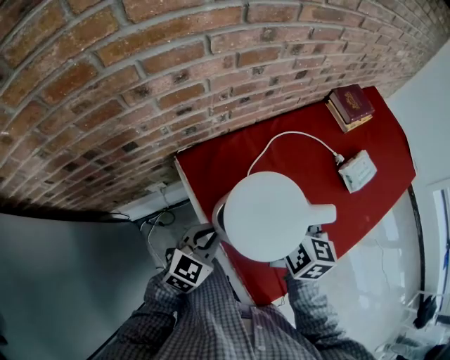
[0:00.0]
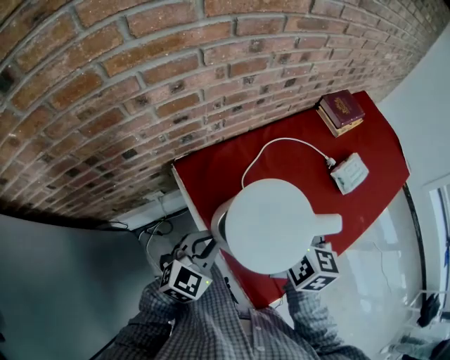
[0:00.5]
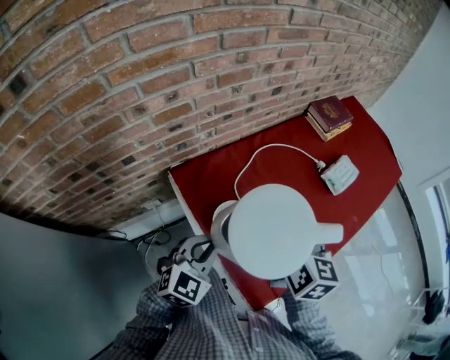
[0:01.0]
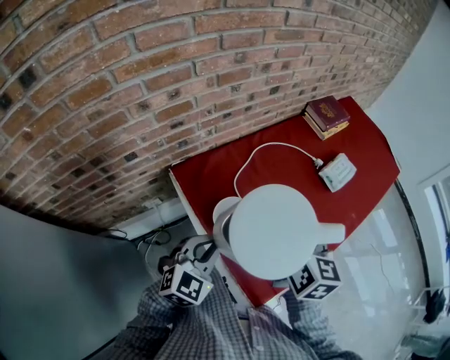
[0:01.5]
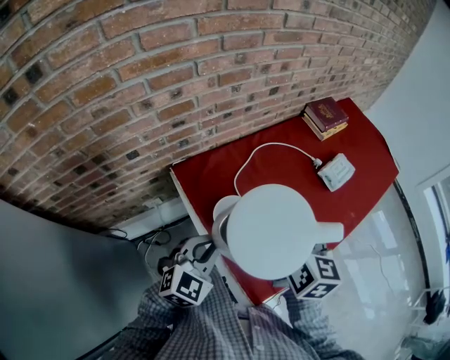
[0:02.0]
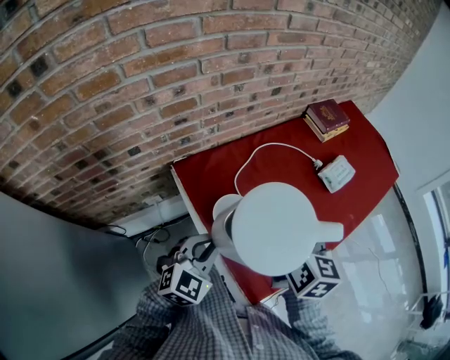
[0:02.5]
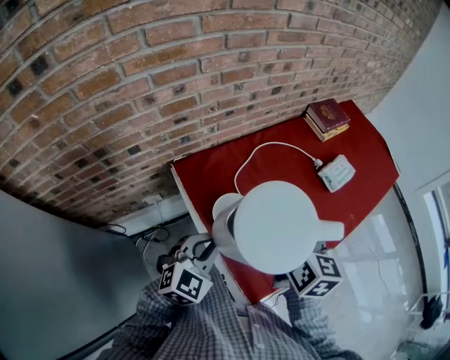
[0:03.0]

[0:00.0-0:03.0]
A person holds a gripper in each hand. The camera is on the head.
0:00.0 to 0:01.5: The left gripper is displaced upward by approximately 5 cm; the right gripper shifts about 10 cm upward, backward and to the right.
0:01.5 to 0:03.0: The grippers move only a little.

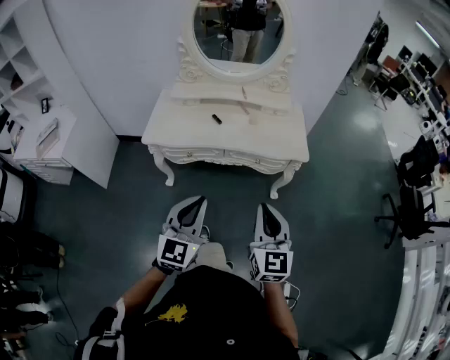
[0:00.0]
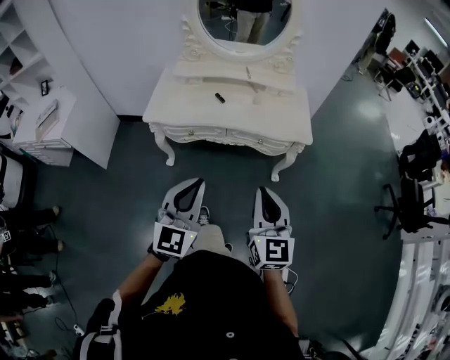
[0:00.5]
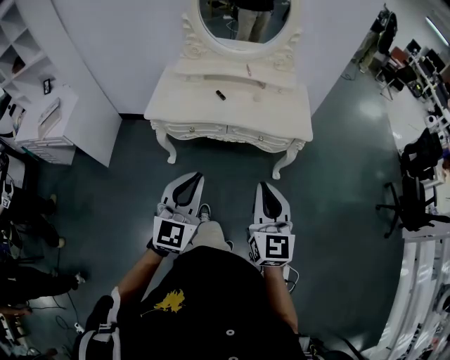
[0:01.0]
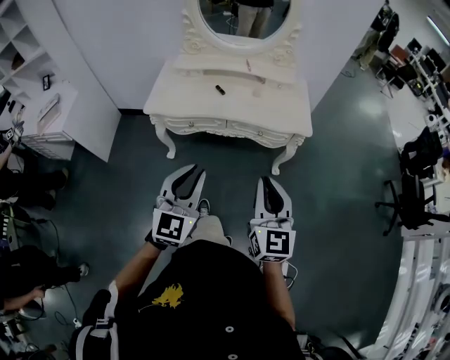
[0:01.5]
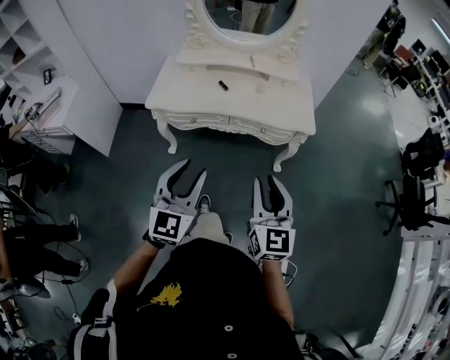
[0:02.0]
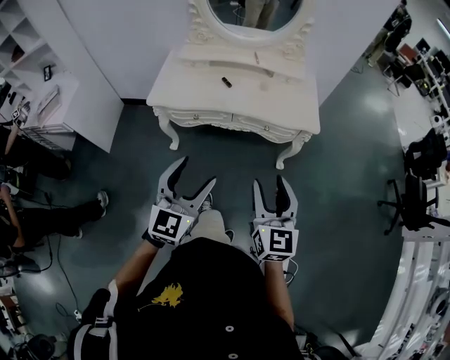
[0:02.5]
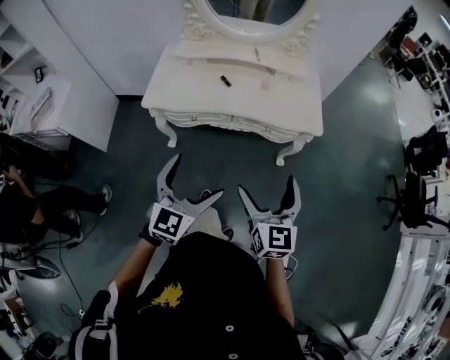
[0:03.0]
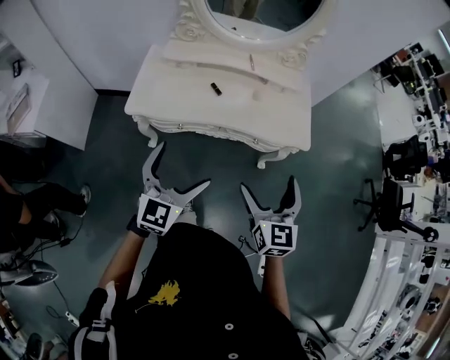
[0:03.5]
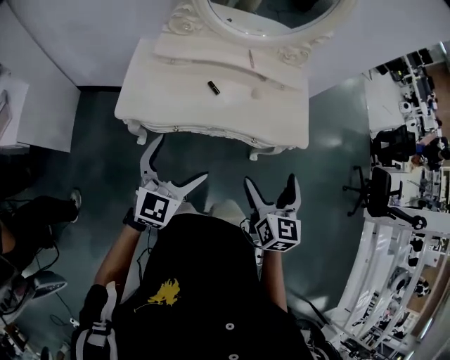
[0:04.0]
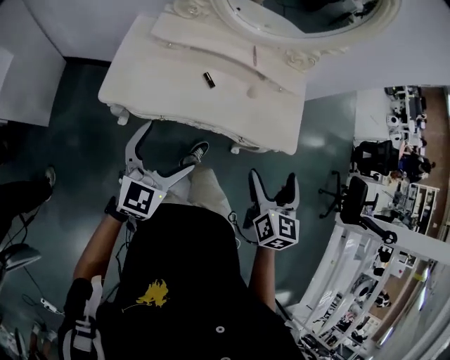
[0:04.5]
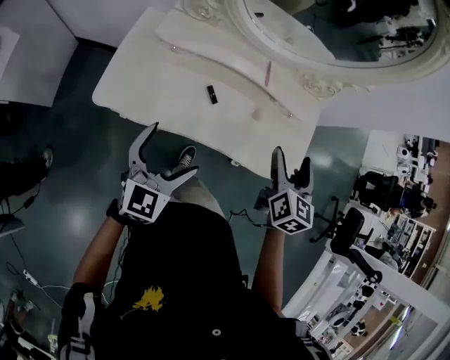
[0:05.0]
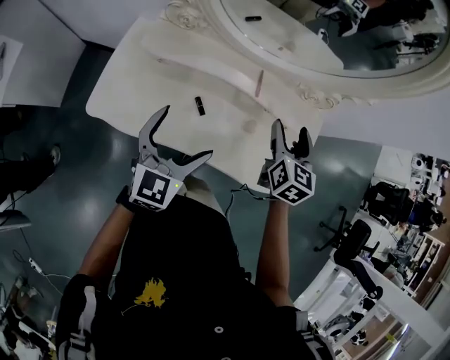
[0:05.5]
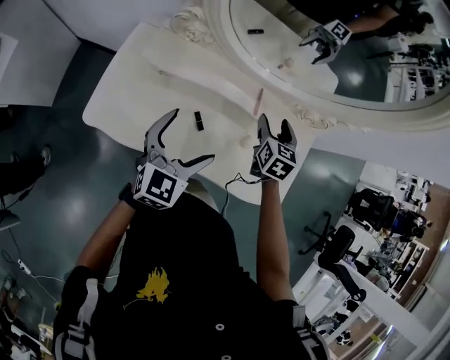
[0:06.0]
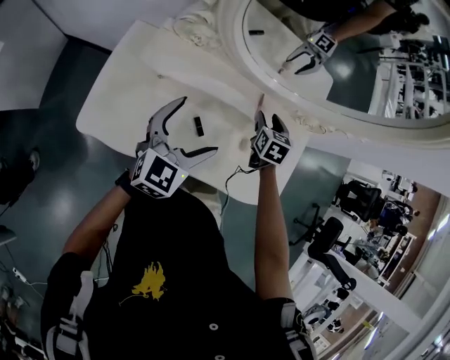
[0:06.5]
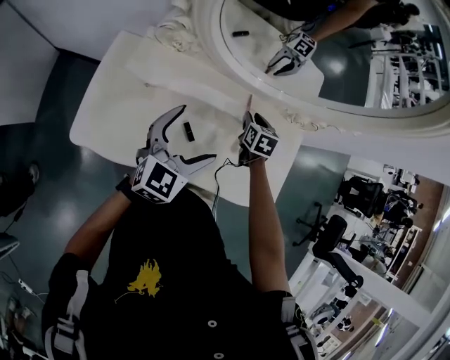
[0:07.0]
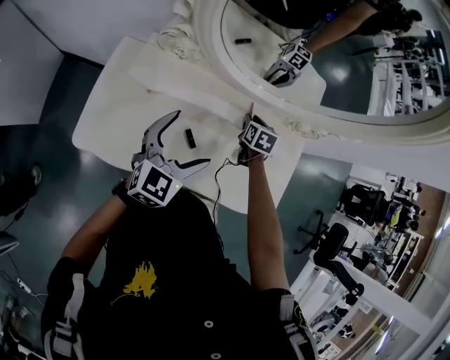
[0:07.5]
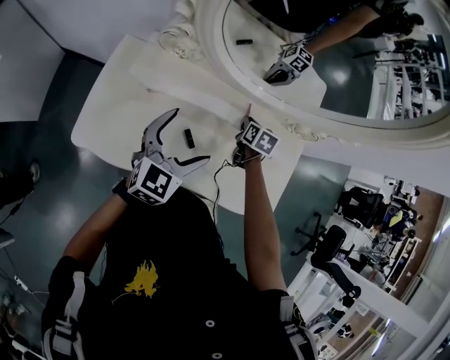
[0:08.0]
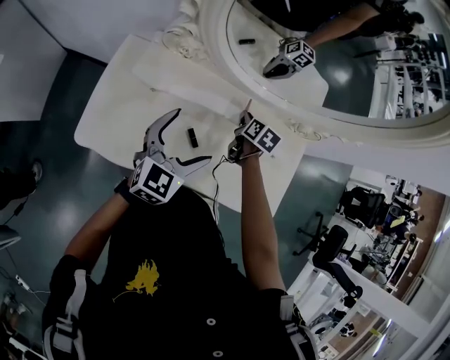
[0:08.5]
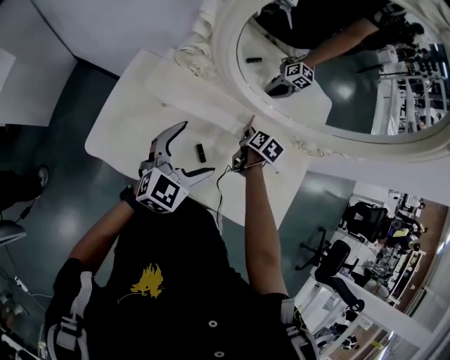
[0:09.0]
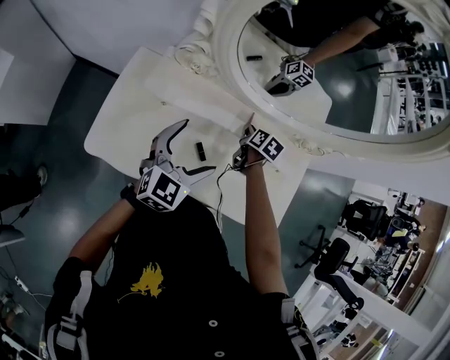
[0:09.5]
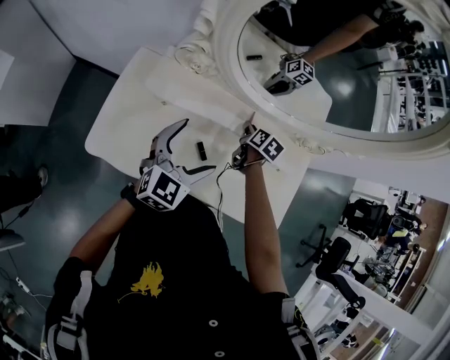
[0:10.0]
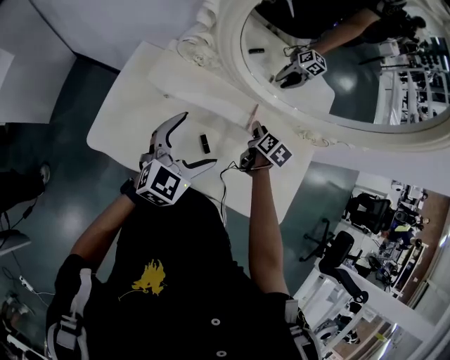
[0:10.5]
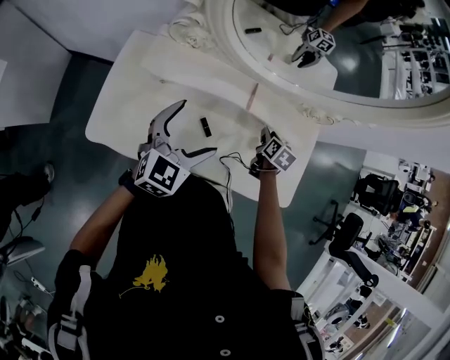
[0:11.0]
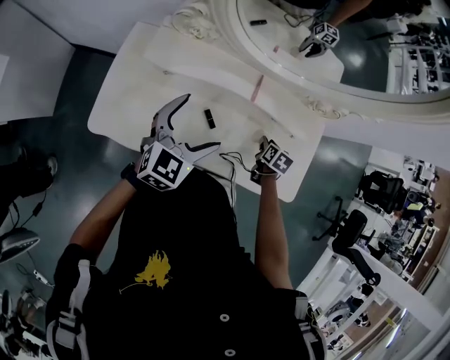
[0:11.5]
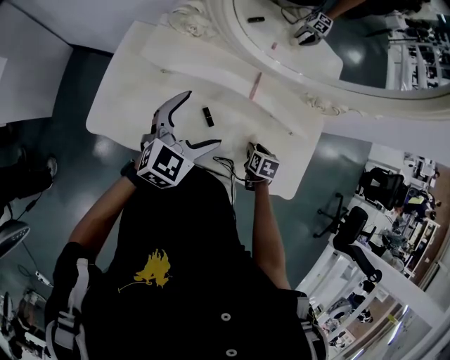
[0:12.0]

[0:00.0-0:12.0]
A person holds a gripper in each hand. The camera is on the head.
0:00.0 to 0:02.0: The grippers stay close to where they were, moving slightly.
0:02.0 to 0:04.0: Both grippers travel together forward and to the left, some 30 cm. The left gripper opens; the right gripper opens up.
0:04.0 to 0:06.0: Both grippers move forward, roughly 40 cm. The right gripper closes.
0:06.0 to 0:08.0: The right gripper heads downward and forward, covering approximately 15 cm, swivels some 20 degrees, and closes up. The left gripper travels forward by some 5 cm.
0:08.0 to 0:10.0: The grippers stay close to where they were, moving slightly.
0:10.0 to 0:12.0: The right gripper goes roughly 25 cm backward, to the right and downward, and turns by roughly 20 degrees.

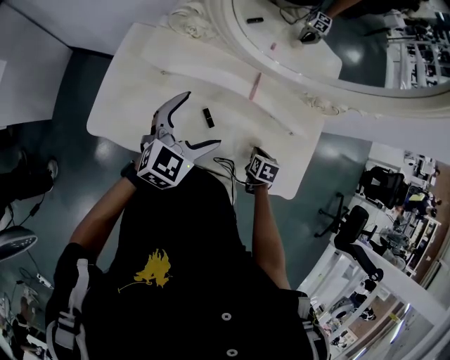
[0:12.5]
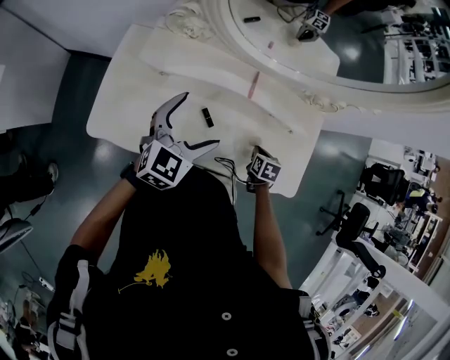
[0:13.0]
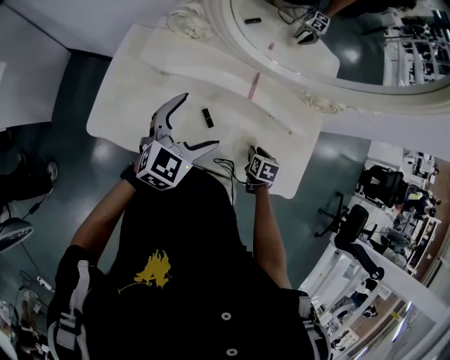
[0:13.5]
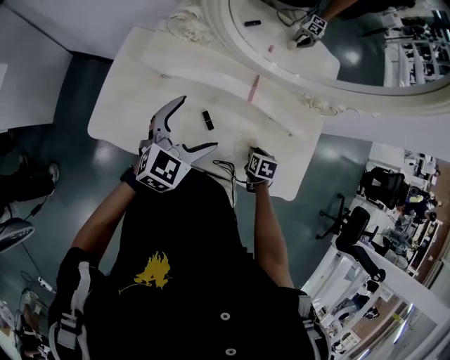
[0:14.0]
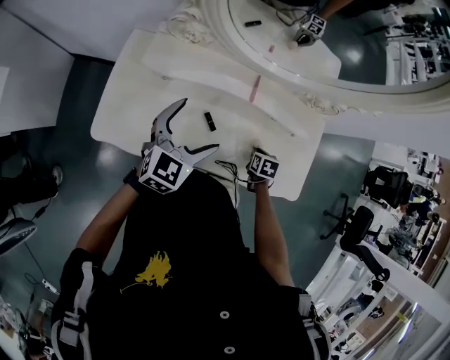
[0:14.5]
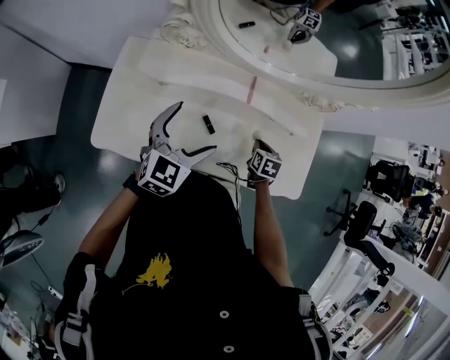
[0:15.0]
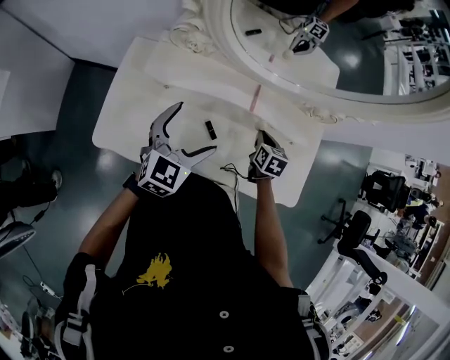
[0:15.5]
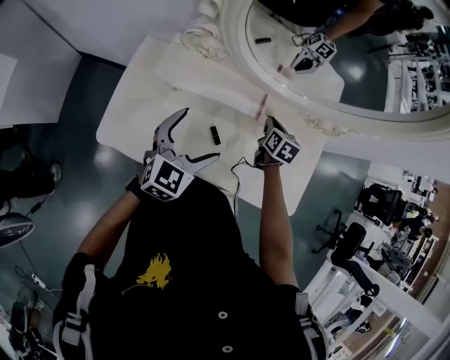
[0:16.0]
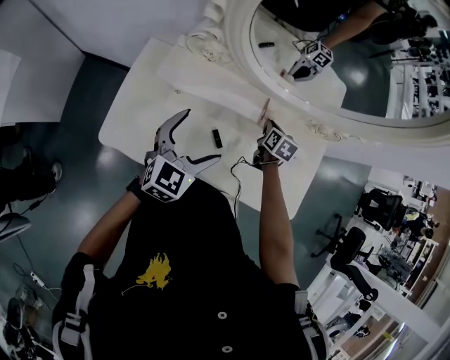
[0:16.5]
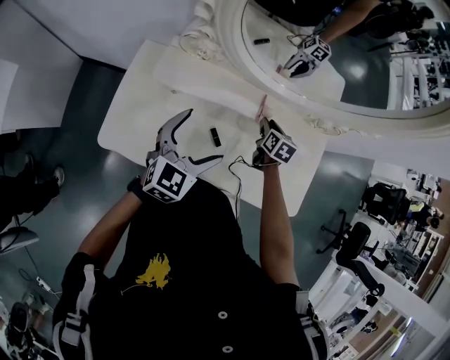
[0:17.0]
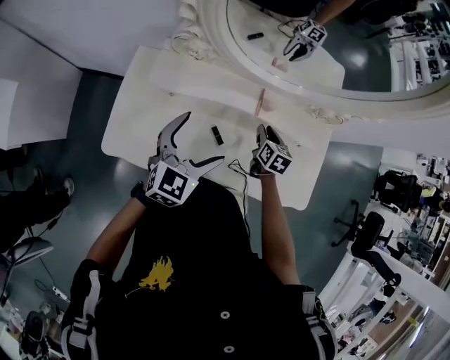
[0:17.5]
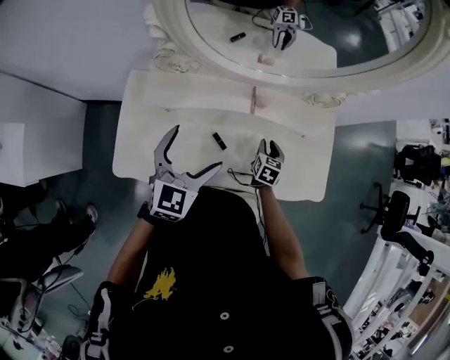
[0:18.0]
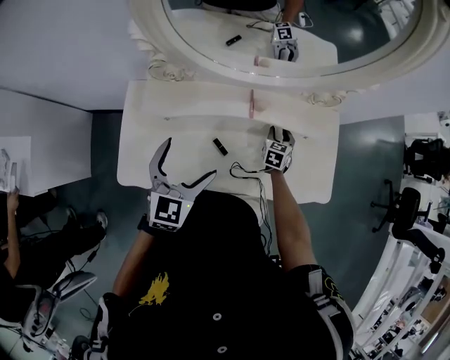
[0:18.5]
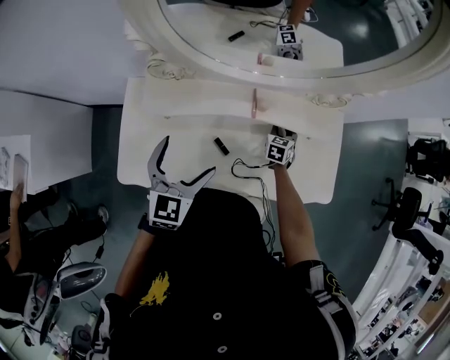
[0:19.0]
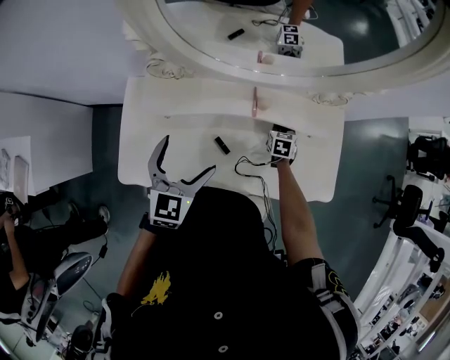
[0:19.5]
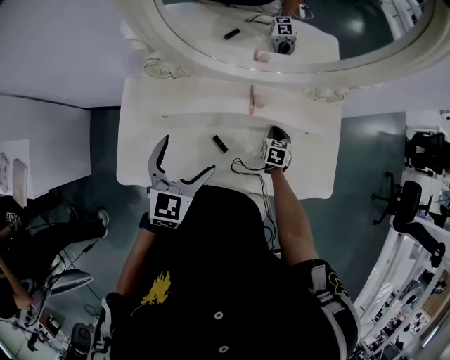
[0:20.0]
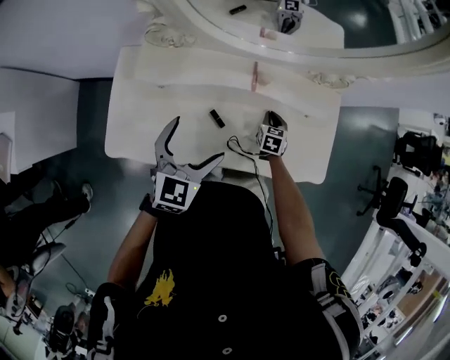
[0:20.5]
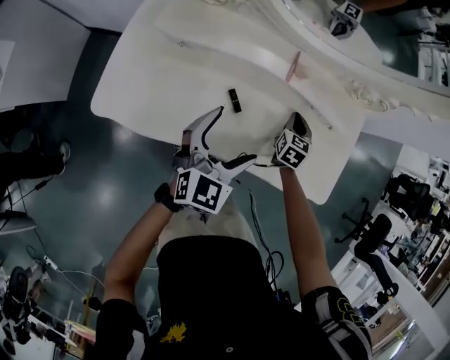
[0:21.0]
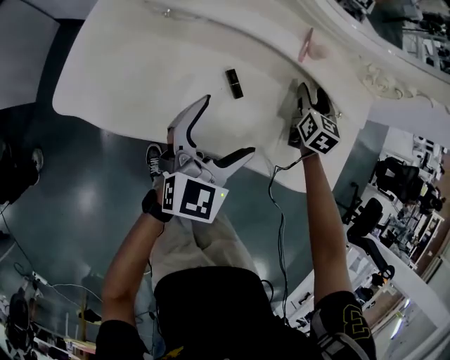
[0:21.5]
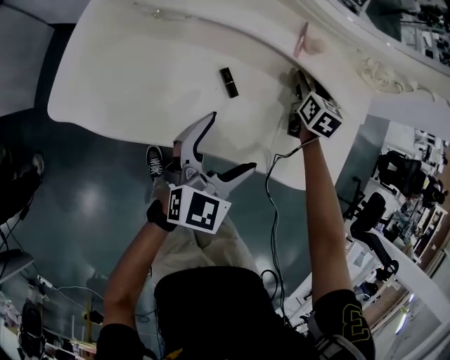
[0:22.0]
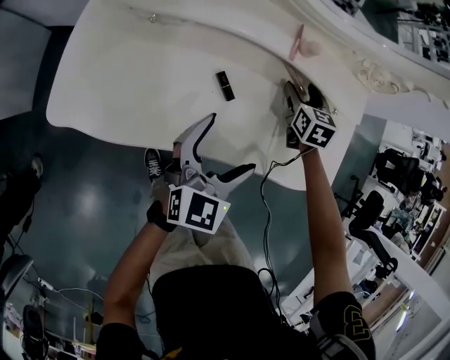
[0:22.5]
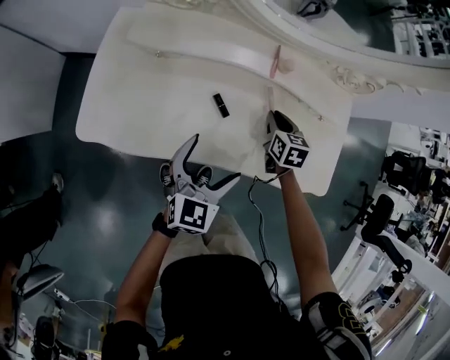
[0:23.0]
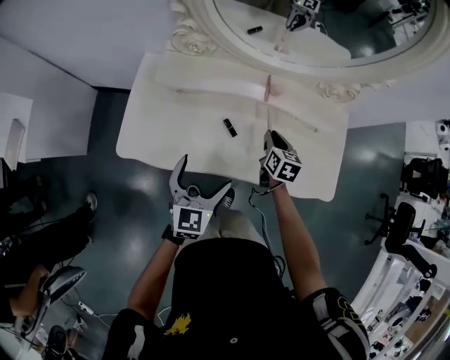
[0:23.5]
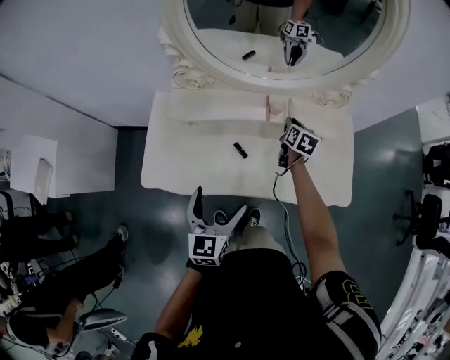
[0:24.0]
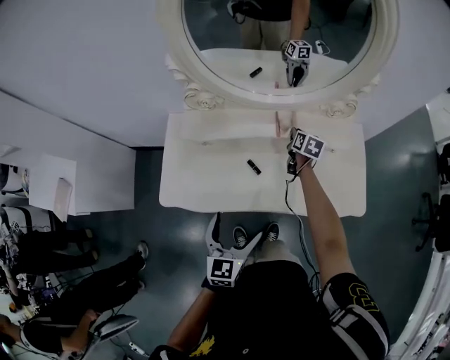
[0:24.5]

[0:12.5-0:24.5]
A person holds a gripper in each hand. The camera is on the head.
0:12.5 to 0:14.5: The grippers stay close to where they were, moving slightly.
0:14.5 to 0:16.5: The right gripper goes approximately 20 cm forward, to the left and upward.
0:16.5 to 0:18.5: The right gripper goes some 15 cm to the right and downward.
0:18.5 to 0:20.5: The right gripper moves roughly 5 cm.
0:20.5 to 0:22.5: The right gripper opens its fingers, while the left gripper moves downward and to the right, approximately 20 cm.
0:22.5 to 0:24.5: The right gripper travels upward by roughly 15 cm, turns by roughly 40 degrees, and closes its fingers; the left gripper shifts roughly 20 cm upward and backward.
